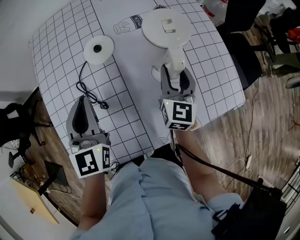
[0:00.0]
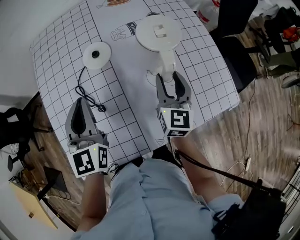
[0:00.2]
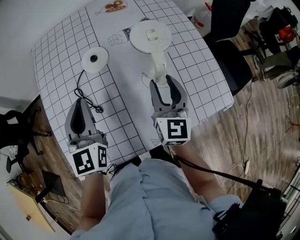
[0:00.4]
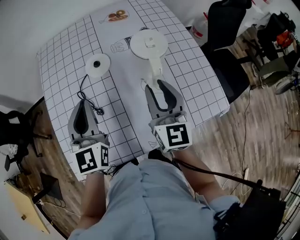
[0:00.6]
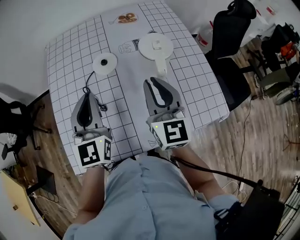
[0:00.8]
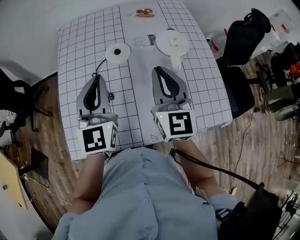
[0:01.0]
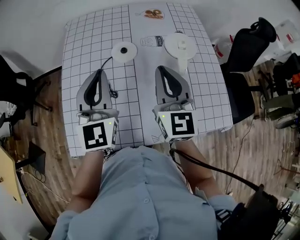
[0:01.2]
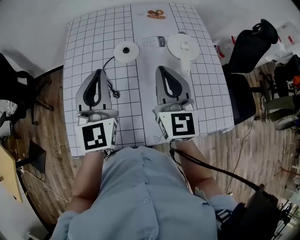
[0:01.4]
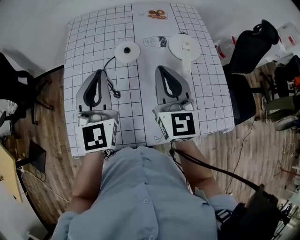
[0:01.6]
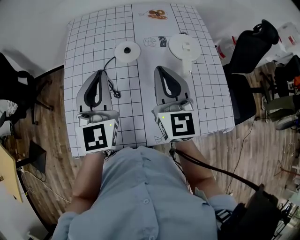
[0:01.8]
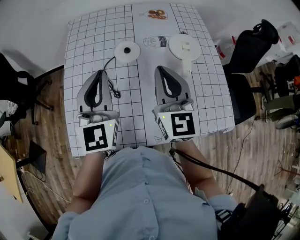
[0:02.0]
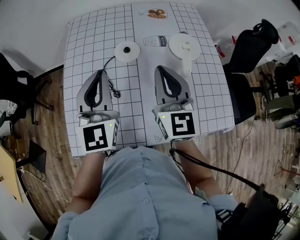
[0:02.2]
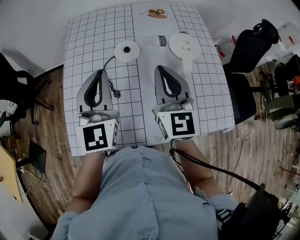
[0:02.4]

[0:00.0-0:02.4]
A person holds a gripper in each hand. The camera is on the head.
0:00.0 to 0:01.2: The right gripper goes some 20 cm upward and to the left, changes its angle by some 30 degrees, and closes up; the left gripper is displaced upward by approximately 10 cm.
0:01.2 to 0:02.4: The grippers make only small movements.

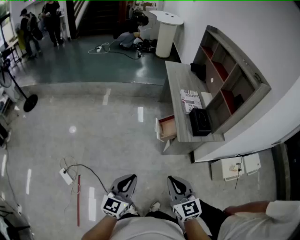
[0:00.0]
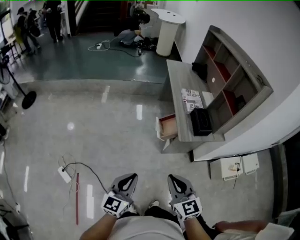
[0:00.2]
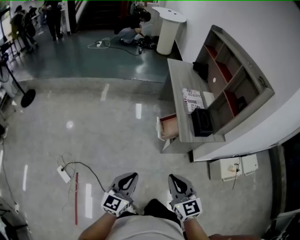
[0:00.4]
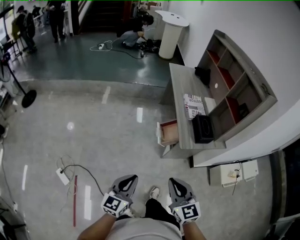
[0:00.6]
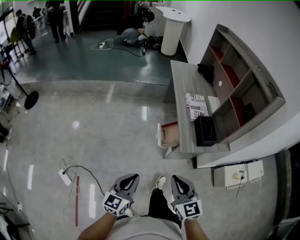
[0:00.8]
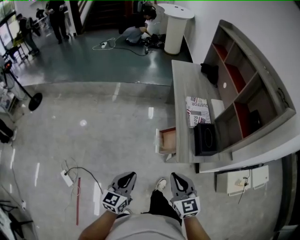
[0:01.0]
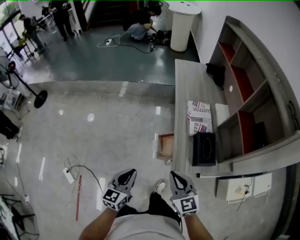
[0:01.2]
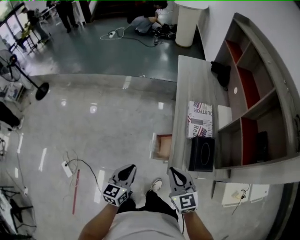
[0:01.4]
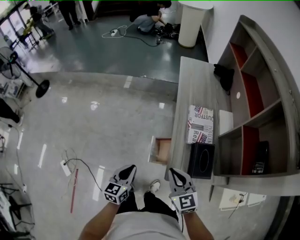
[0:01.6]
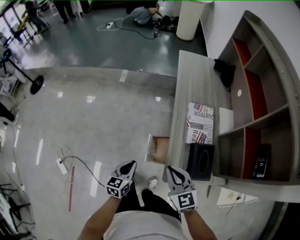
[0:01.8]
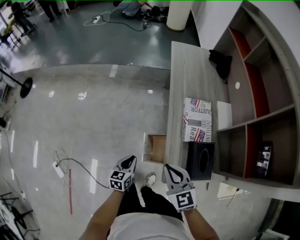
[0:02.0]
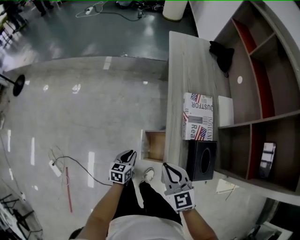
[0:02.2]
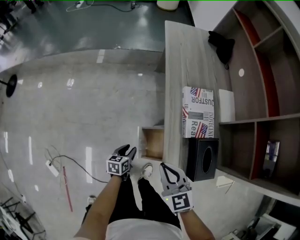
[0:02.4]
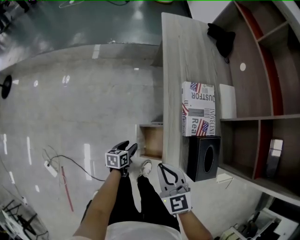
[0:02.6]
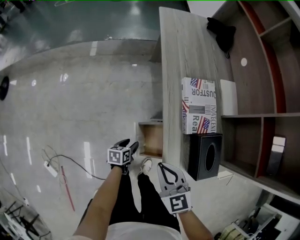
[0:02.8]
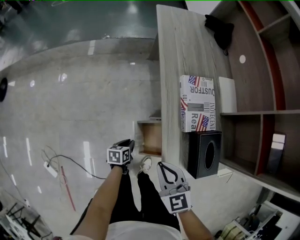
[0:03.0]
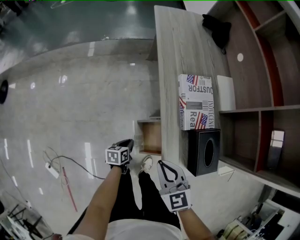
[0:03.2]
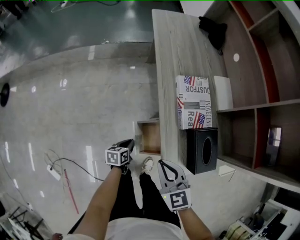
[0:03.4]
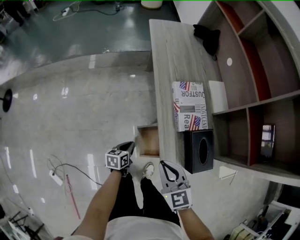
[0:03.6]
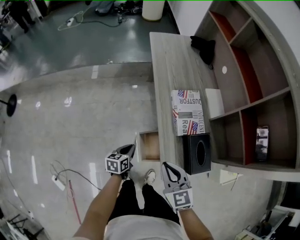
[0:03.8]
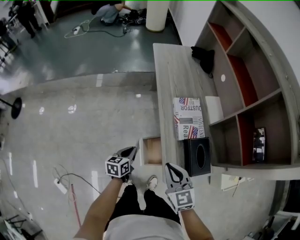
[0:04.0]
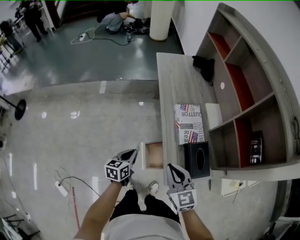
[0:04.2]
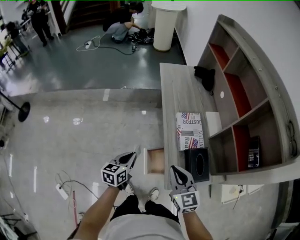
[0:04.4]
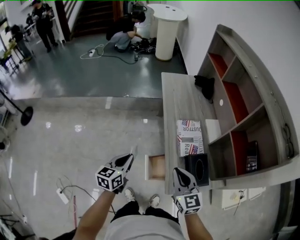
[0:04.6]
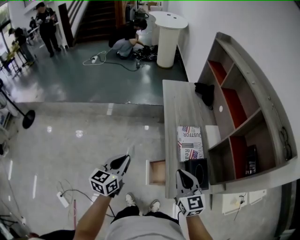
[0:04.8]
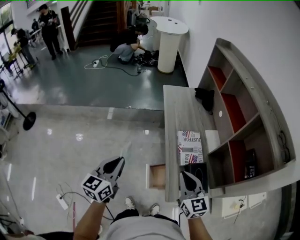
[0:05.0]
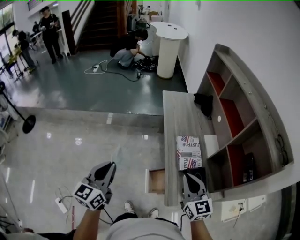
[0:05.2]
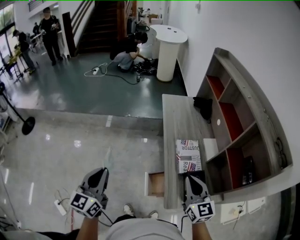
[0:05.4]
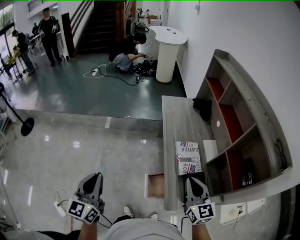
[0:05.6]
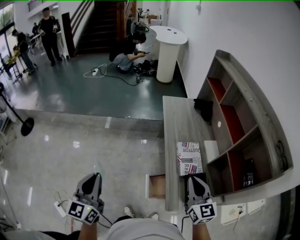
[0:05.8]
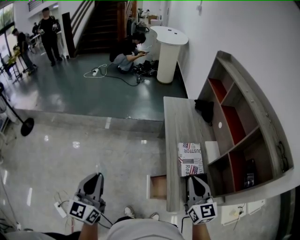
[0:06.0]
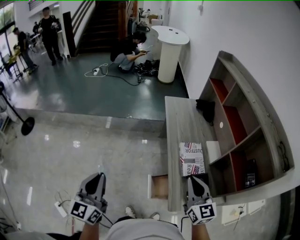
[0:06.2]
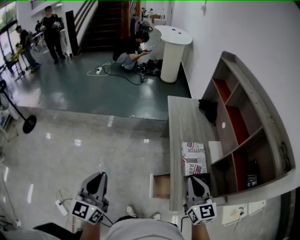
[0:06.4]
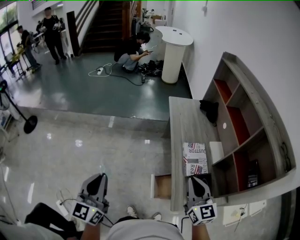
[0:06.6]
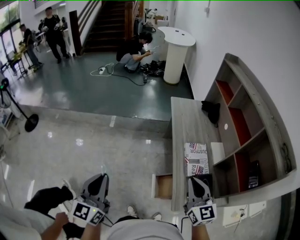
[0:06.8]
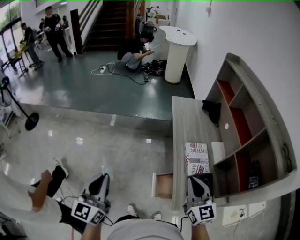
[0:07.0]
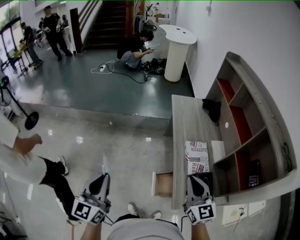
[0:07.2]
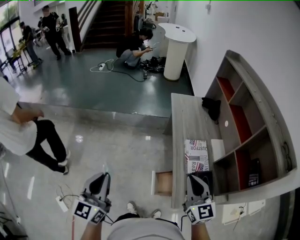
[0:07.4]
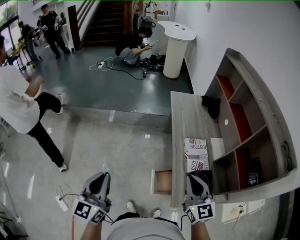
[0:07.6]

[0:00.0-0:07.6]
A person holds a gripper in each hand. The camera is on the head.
0:00.0 to 0:01.6: Both grippers travel together forward, roughly 35 cm. The left gripper turns by approximately 20 degrees.
0:01.6 to 0:03.0: The left gripper is displaced downward and forward by approximately 35 cm, rotates roughly 40 degrees, and opens, then closes again; the right gripper travels downward and forward by roughly 15 cm.
0:03.0 to 0:04.6: The right gripper heads upward, covering roughly 20 cm. The left gripper travels upward by roughly 40 cm, and changes its angle by roughly 40 degrees.
0:04.6 to 0:06.0: The right gripper travels upward by about 10 cm. Meanwhile the left gripper travels upward and to the left by roughly 25 cm, and turns by about 30 degrees.
0:06.0 to 0:07.6: The right gripper goes roughly 5 cm to the left.

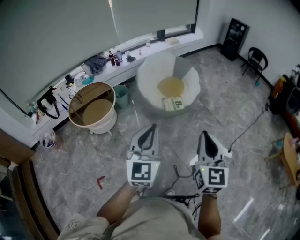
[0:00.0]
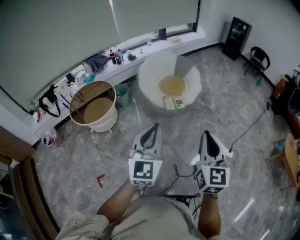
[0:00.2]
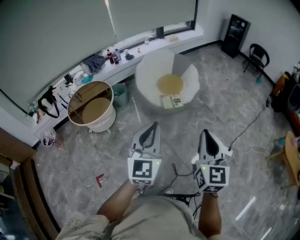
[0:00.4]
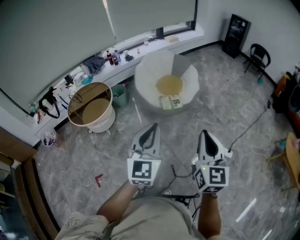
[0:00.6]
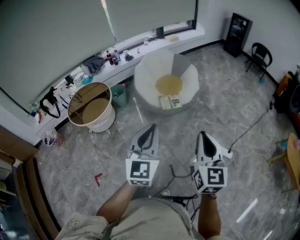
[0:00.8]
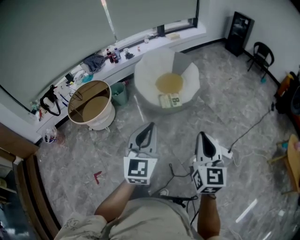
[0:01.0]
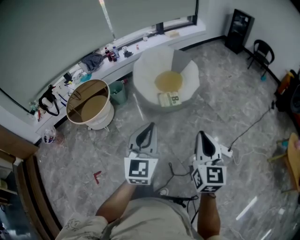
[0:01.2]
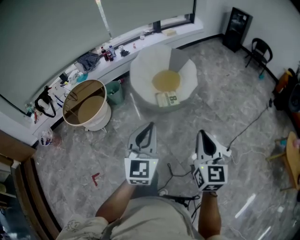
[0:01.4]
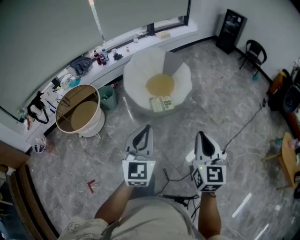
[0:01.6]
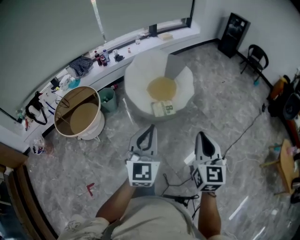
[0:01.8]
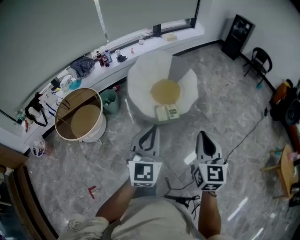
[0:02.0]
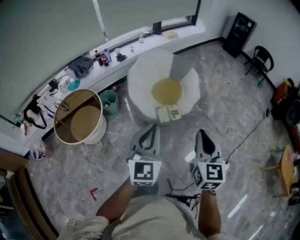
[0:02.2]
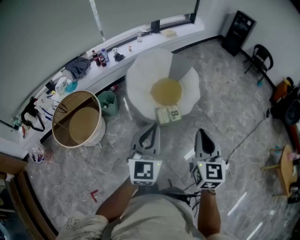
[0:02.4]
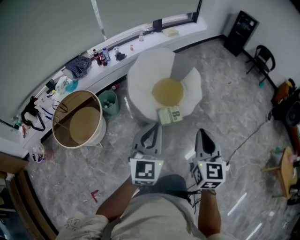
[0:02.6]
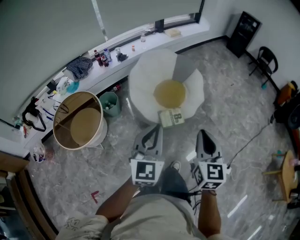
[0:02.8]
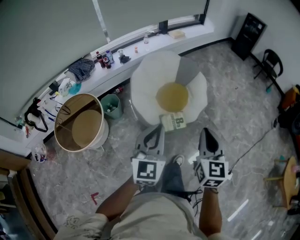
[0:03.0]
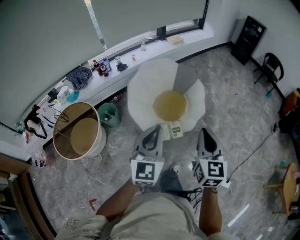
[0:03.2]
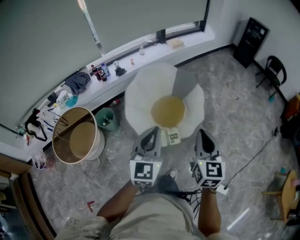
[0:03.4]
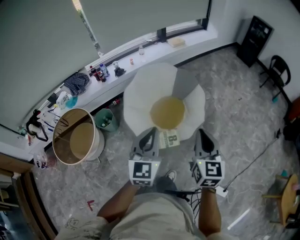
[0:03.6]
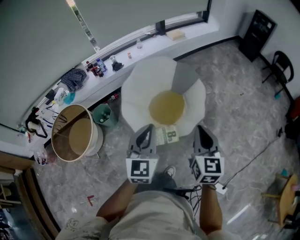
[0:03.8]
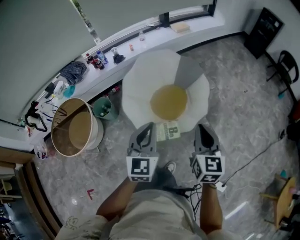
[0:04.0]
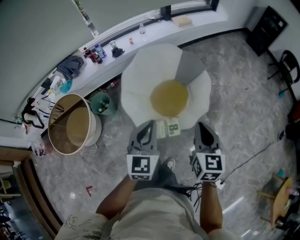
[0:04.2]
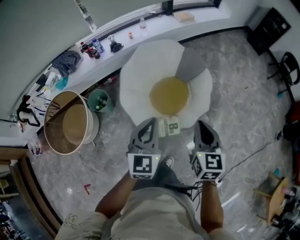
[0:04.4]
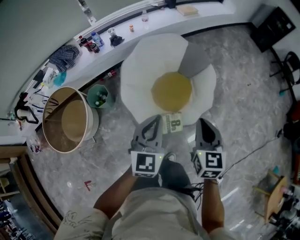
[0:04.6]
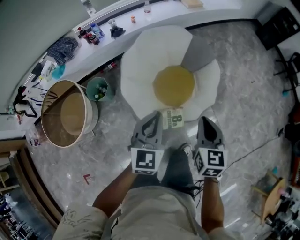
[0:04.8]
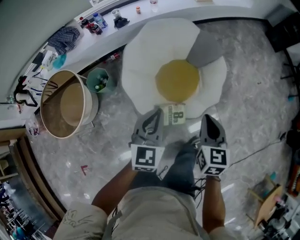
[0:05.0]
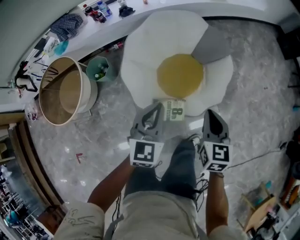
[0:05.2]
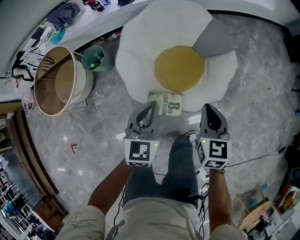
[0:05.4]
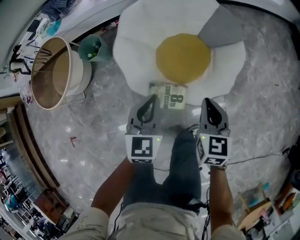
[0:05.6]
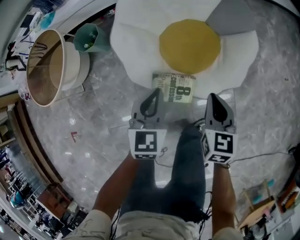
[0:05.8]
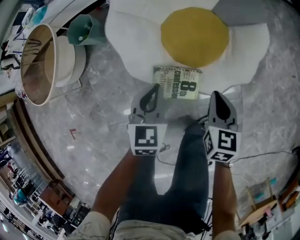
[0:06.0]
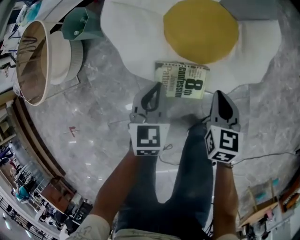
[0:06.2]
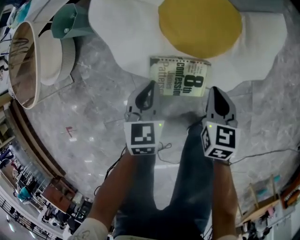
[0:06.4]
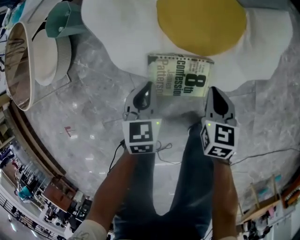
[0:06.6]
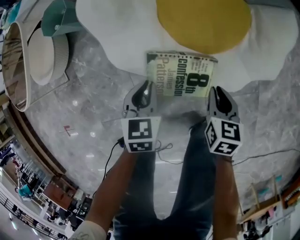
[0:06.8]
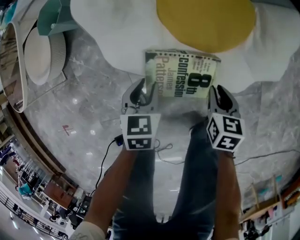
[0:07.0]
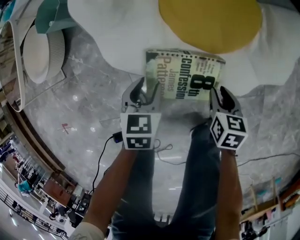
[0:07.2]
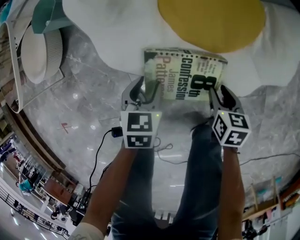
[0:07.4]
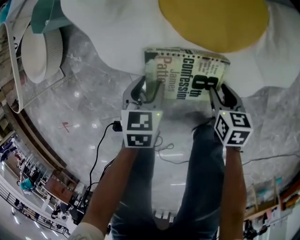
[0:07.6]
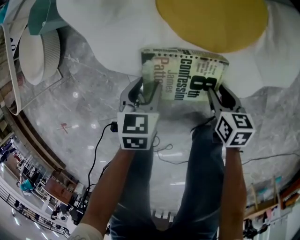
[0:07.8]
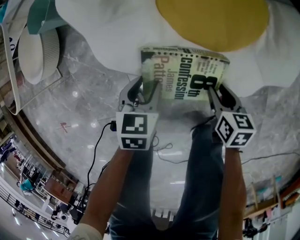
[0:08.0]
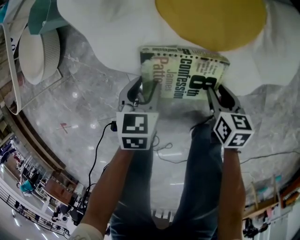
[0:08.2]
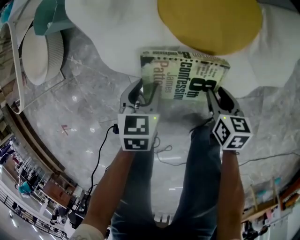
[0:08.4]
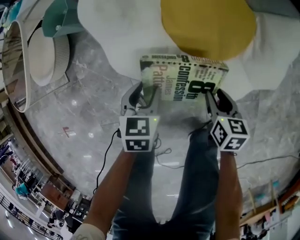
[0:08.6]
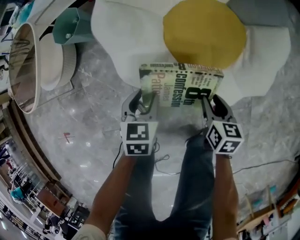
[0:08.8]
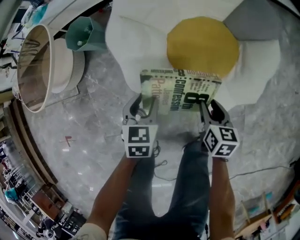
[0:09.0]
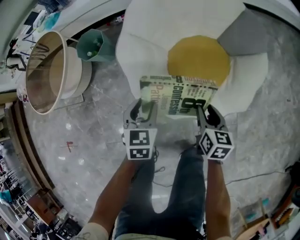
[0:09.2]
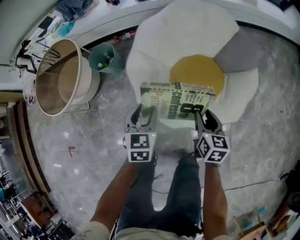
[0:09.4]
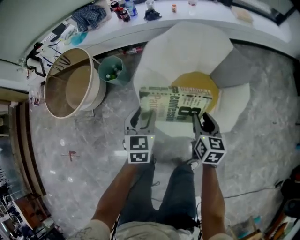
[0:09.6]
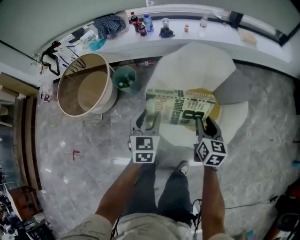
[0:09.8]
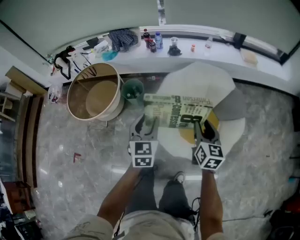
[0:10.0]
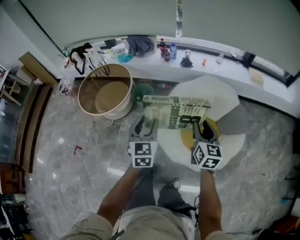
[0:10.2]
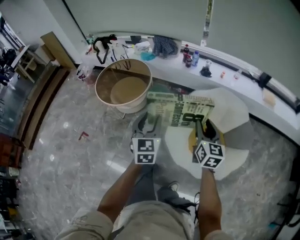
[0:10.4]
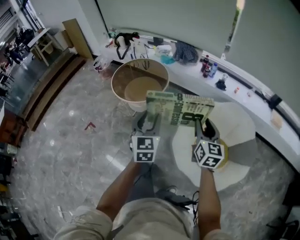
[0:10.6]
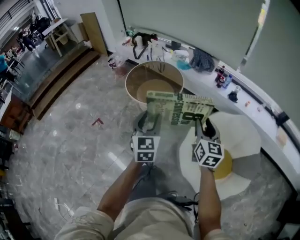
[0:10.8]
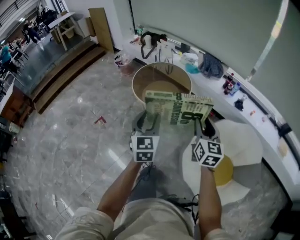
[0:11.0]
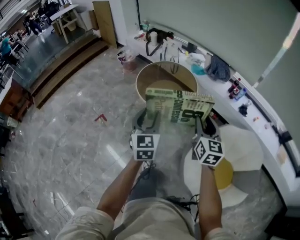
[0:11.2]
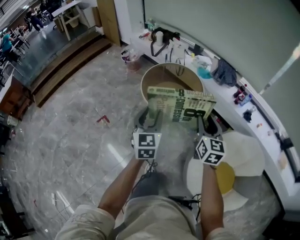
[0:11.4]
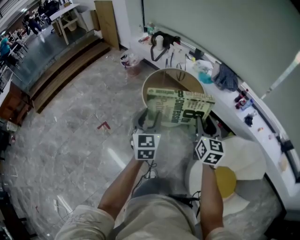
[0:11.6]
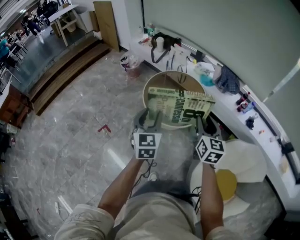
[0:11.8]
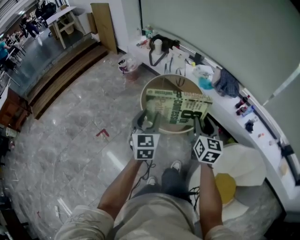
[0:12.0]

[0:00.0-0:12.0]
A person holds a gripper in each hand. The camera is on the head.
0:00.0 to 0:01.6: The right gripper moves forward, to the right and downward, approximately 15 cm. Meanwhile the left gripper goes about 15 cm forward and to the right.
0:01.6 to 0:03.0: Both grippers travel together forward, approximately 30 cm.
0:03.0 to 0:04.4: Both grippers travel together forward, about 25 cm.
0:04.4 to 0:06.0: Both grippers travel together downward, about 40 cm. The right gripper rotates about 20 degrees. Meanwhile the left gripper changes its angle by approximately 30 degrees.
0:06.0 to 0:07.6: The grippers both shift downward by some 30 cm. The left gripper swivels some 20 degrees, and opens; the right gripper rotates roughly 30 degrees, and opens.
0:07.6 to 0:09.0: Both grippers travel together upward, some 20 cm.
0:09.0 to 0:10.4: Both grippers travel together upward, roughly 50 cm. The right gripper tilts its fingers approximately 30 degrees upward; the left gripper angles its fingers upward, by roughly 30 degrees.
0:10.4 to 0:12.0: The pair of grippers is taken to the left and forward, approximately 50 cm. The left gripper swivels roughly 20 degrees, while the right gripper rotates about 20 degrees.

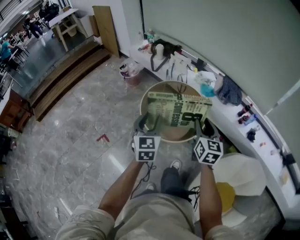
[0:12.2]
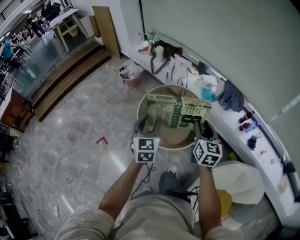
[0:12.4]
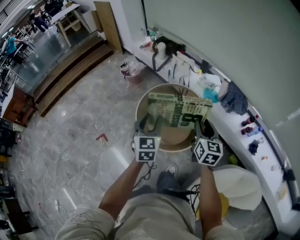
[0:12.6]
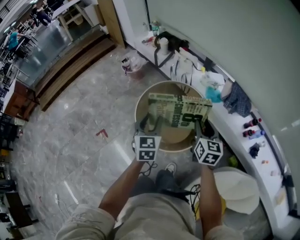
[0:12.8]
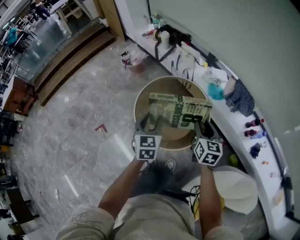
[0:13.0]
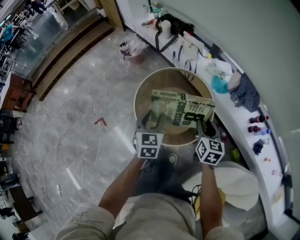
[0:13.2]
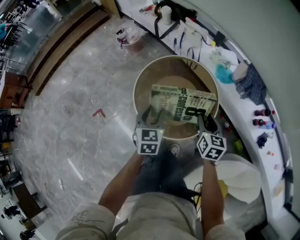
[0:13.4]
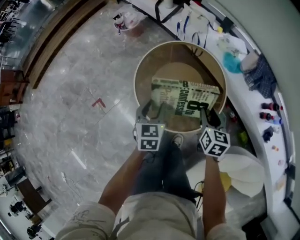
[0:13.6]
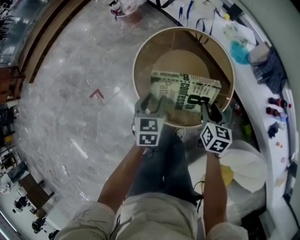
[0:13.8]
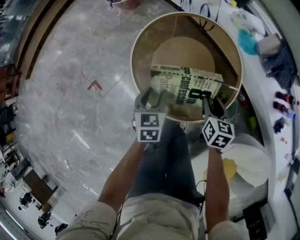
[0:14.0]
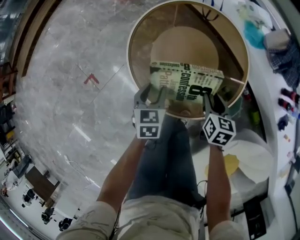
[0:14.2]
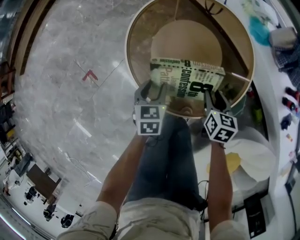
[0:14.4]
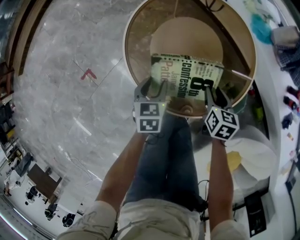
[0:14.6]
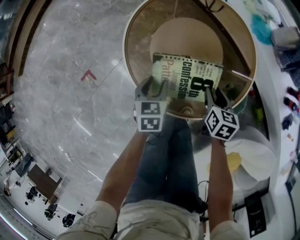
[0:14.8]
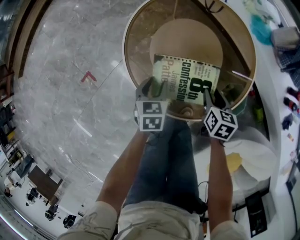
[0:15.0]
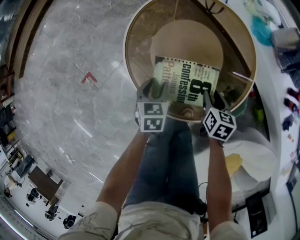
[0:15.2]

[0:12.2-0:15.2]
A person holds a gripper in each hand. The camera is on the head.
0:12.2 to 0:13.8: Both grippers move downward and forward, approximately 35 cm. The right gripper turns by some 30 degrees, while the left gripper turns by roughly 30 degrees.
0:13.8 to 0:15.2: Both grippers move downward, about 20 cm.
